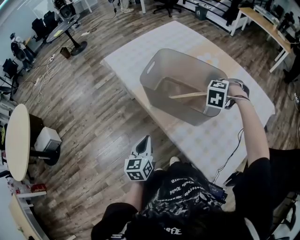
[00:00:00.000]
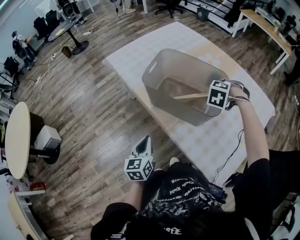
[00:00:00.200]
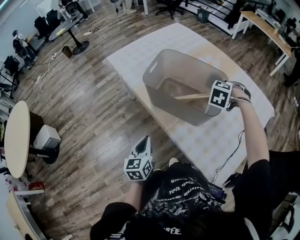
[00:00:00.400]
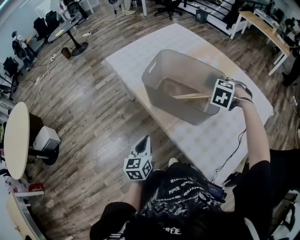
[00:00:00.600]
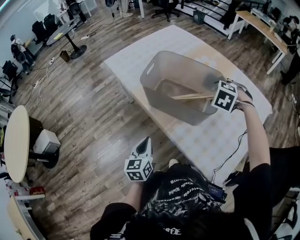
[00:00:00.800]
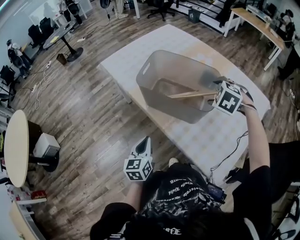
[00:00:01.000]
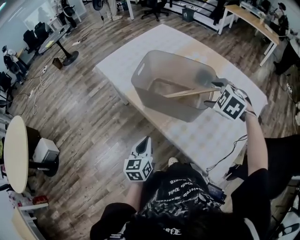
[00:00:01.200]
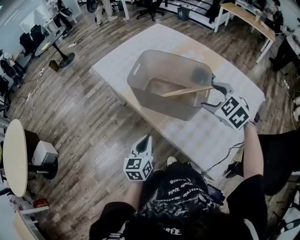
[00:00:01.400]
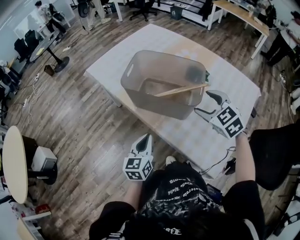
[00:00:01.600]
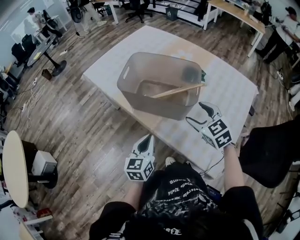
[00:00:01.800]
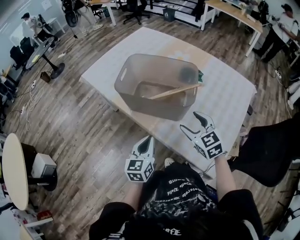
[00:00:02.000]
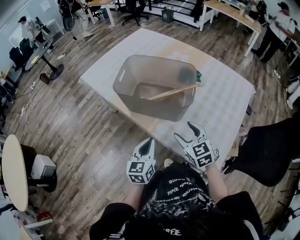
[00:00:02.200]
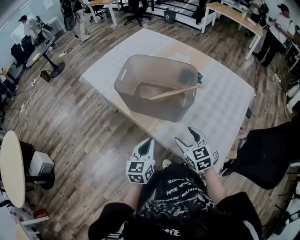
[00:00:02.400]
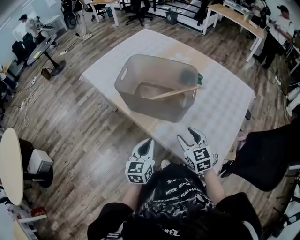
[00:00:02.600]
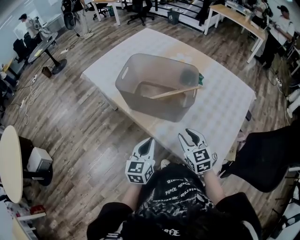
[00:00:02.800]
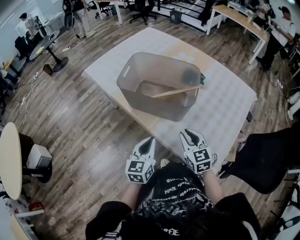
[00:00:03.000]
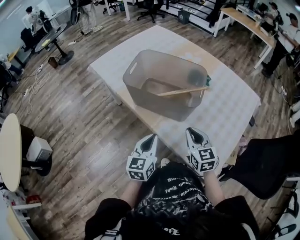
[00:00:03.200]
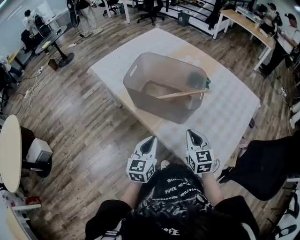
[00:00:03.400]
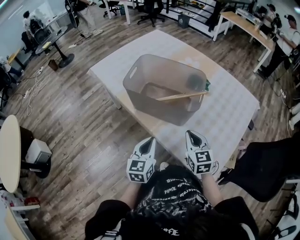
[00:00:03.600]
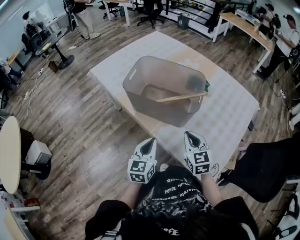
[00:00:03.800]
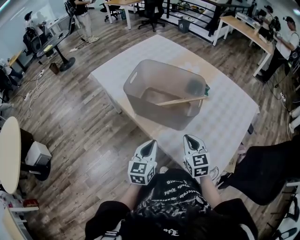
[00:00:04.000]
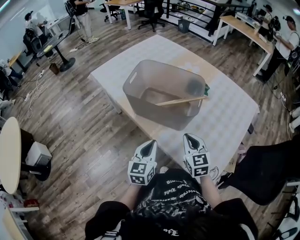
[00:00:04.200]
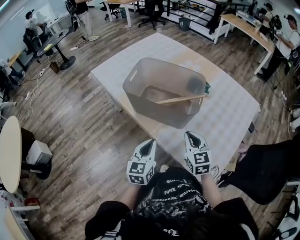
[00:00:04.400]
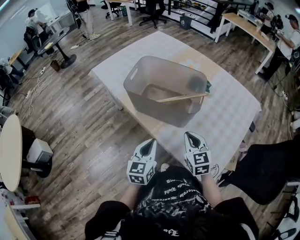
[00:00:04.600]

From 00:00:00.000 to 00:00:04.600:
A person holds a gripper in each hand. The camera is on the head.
From 00:00:00.000 to 00:00:01.600: The left gripper moves to the right, some 5 cm. The right gripper shifts some 15 cm backward and upward, rotates about 60 degrees, and opens its fingers.
From 00:00:01.600 to 00:00:03.000: The right gripper travels backward and downward by some 15 cm, turns by roughly 30 degrees, and closes up. The left gripper ends up approximately 5 cm from where it was.
From 00:00:03.000 to 00:00:04.600: The grippers make only small movements.

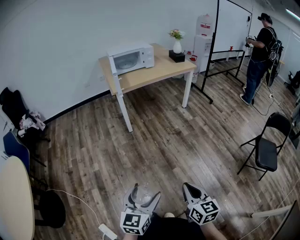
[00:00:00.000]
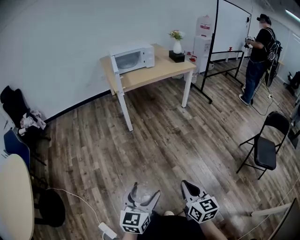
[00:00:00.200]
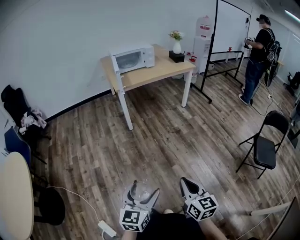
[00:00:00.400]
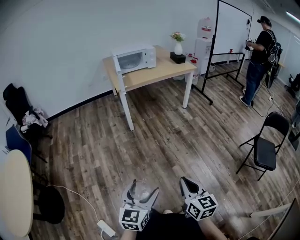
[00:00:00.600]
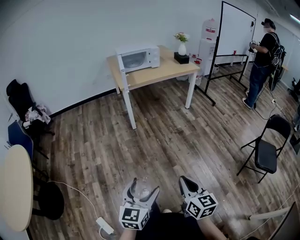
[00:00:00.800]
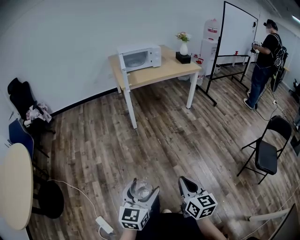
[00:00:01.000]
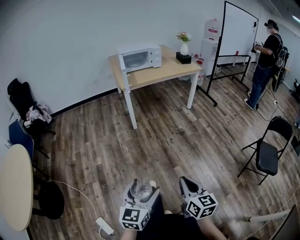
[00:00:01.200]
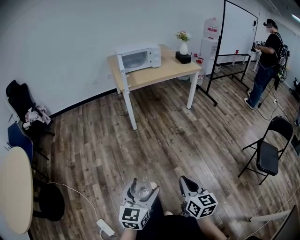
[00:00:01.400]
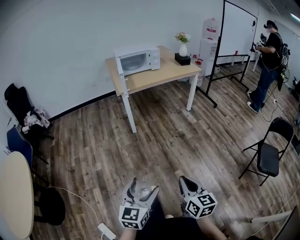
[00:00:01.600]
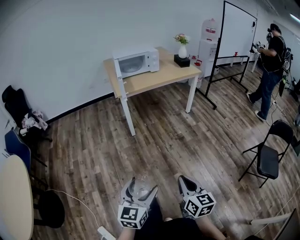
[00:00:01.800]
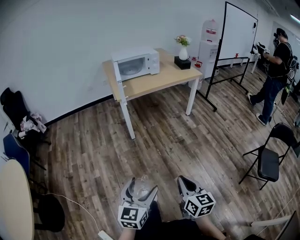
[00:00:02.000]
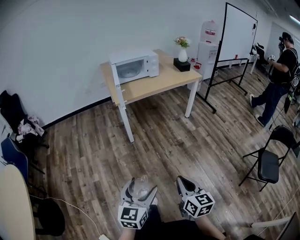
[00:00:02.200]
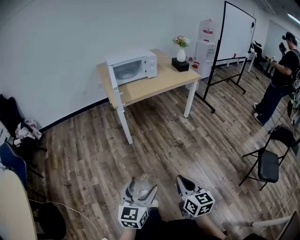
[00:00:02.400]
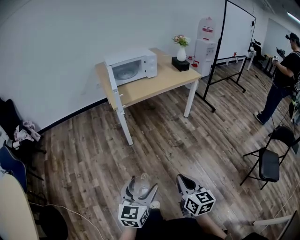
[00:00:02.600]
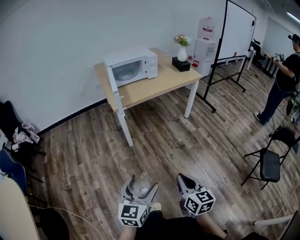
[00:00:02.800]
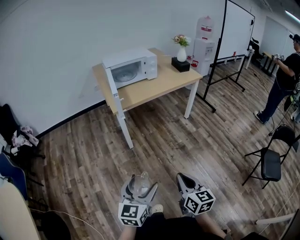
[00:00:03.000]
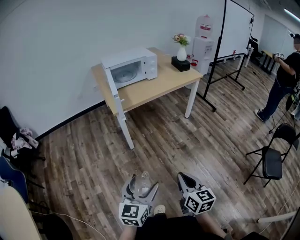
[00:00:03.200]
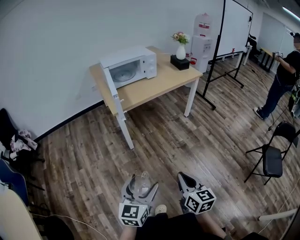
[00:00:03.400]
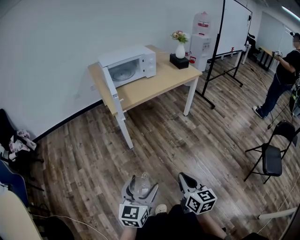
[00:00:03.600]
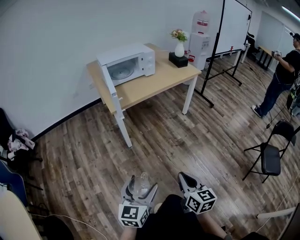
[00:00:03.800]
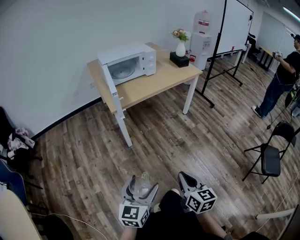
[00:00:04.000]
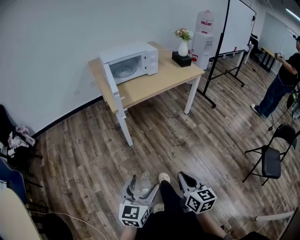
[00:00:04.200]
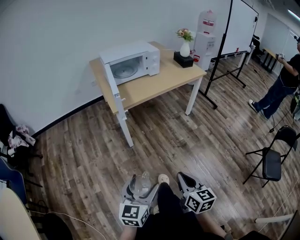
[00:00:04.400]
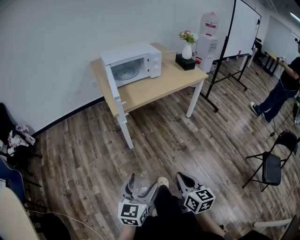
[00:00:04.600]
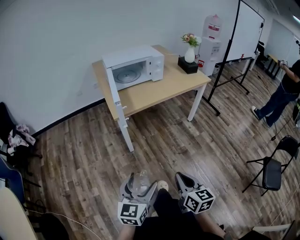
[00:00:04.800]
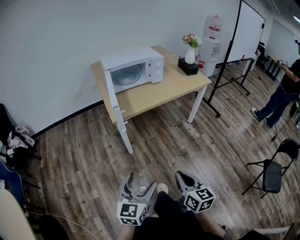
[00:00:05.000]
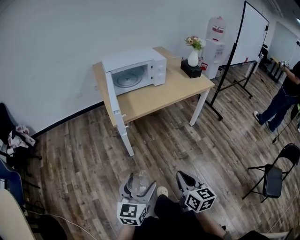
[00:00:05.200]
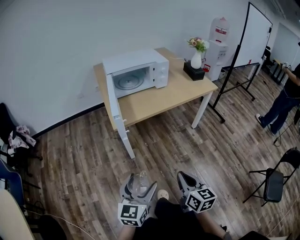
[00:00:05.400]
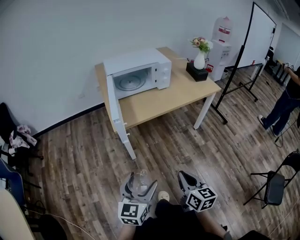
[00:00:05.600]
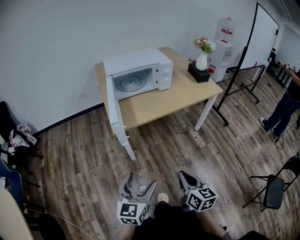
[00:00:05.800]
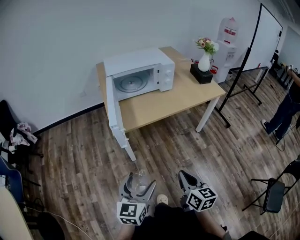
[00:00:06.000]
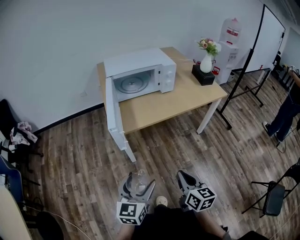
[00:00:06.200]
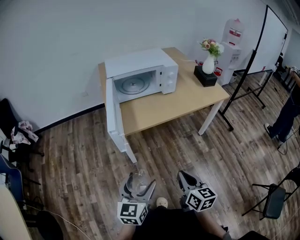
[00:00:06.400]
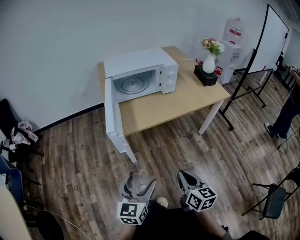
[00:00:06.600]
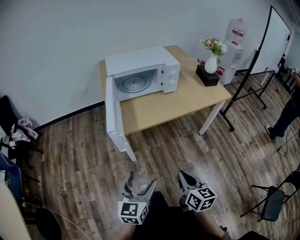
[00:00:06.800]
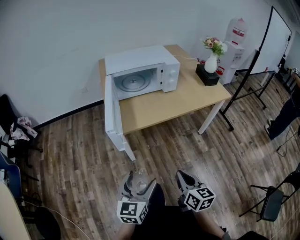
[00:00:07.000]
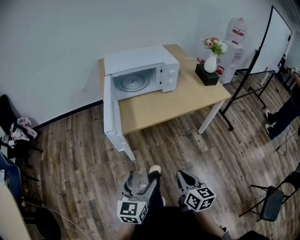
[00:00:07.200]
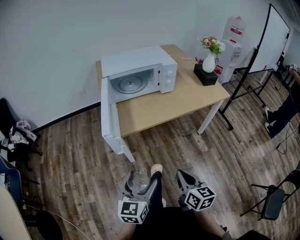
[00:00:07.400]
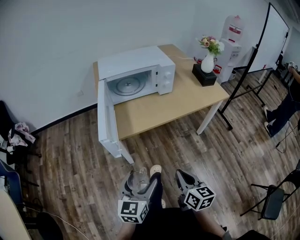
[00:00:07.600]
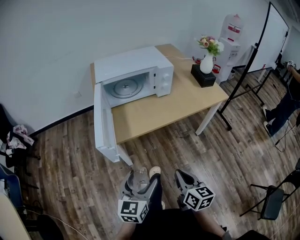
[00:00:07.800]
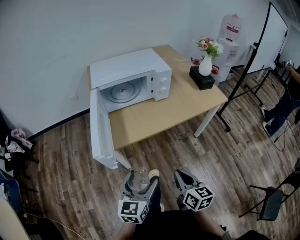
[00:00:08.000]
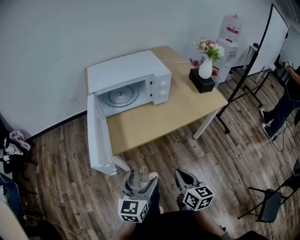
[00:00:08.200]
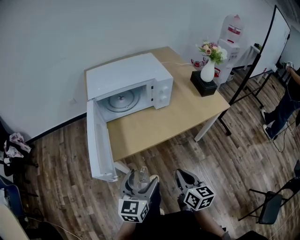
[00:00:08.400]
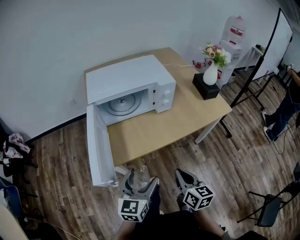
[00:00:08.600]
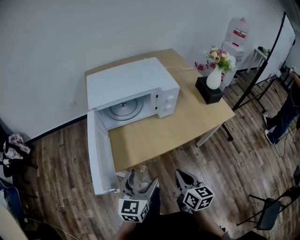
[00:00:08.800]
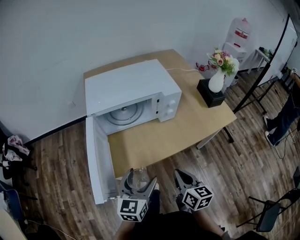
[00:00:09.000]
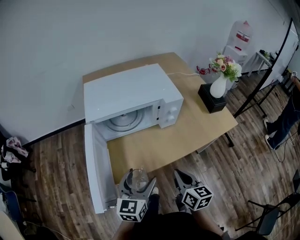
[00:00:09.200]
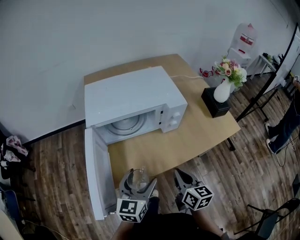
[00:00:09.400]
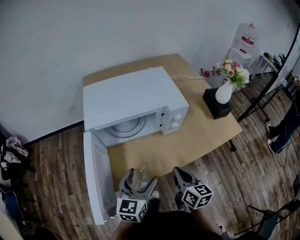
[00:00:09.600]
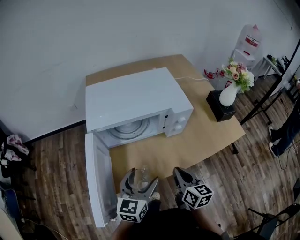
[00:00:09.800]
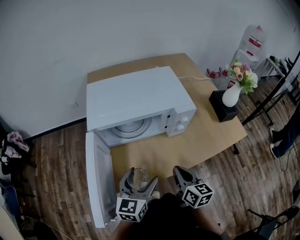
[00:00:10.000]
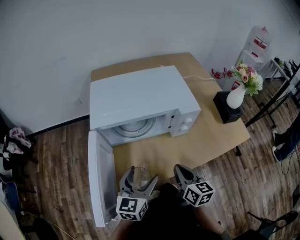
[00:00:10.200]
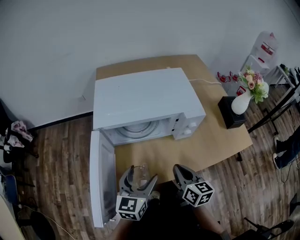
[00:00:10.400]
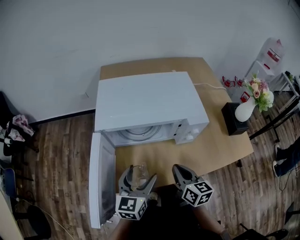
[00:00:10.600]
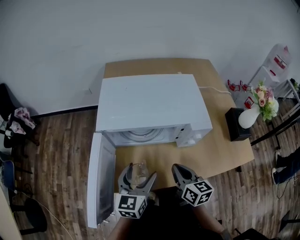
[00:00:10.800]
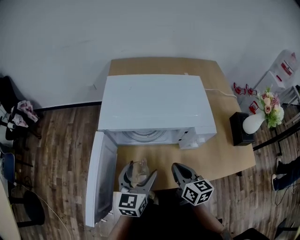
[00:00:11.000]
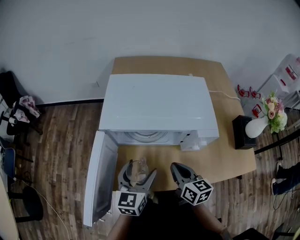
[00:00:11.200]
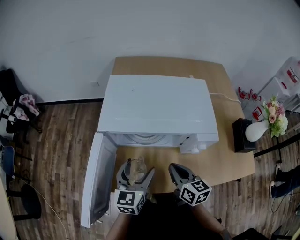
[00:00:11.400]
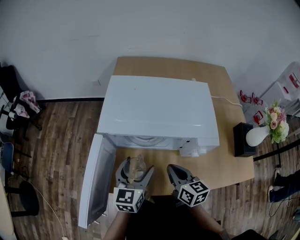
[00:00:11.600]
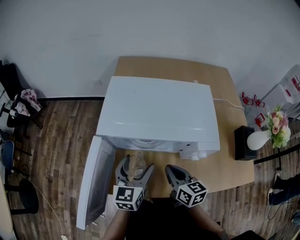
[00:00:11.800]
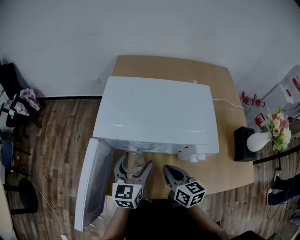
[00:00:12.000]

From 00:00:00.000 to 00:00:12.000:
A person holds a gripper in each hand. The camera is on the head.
From 00:00:00.000 to 00:00:01.600: The grippers move only a little.
From 00:00:01.600 to 00:00:03.000: Both grippers travel together forward, approximately 25 cm.
From 00:00:03.000 to 00:00:04.400: Both grippers travel together forward, approximately 5 cm.
From 00:00:04.400 to 00:00:06.000: Both grippers move forward, approximately 25 cm.
From 00:00:06.000 to 00:00:07.600: The two grippers go about 10 cm forward.
From 00:00:07.600 to 00:00:09.000: The grippers both shift forward by about 25 cm.
From 00:00:09.000 to 00:00:10.400: The grippers both shift forward by about 15 cm.
From 00:00:10.400 to 00:00:12.000: Both grippers move forward, about 15 cm. The right gripper changes its angle by some 20 degrees.

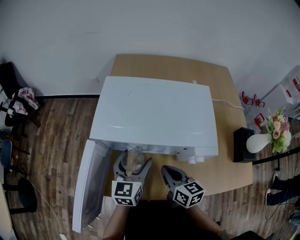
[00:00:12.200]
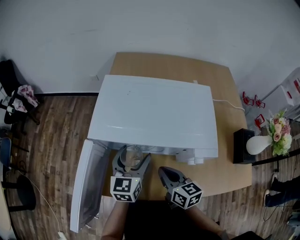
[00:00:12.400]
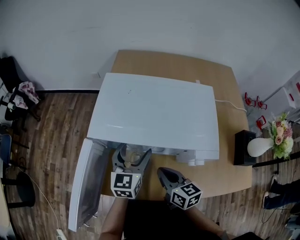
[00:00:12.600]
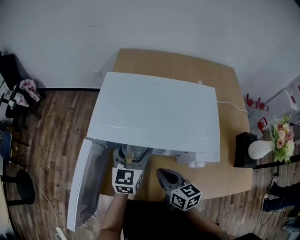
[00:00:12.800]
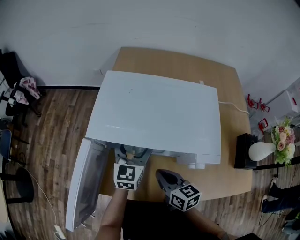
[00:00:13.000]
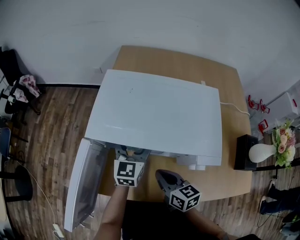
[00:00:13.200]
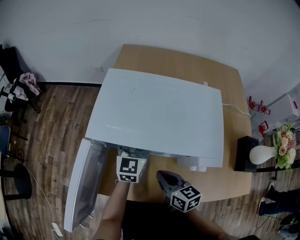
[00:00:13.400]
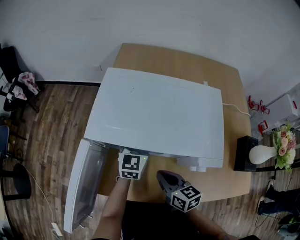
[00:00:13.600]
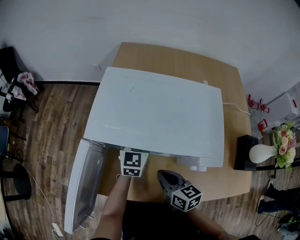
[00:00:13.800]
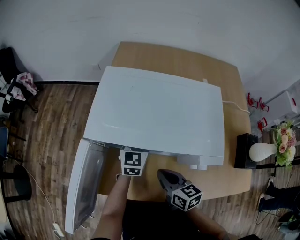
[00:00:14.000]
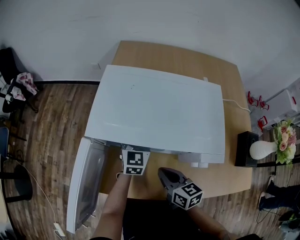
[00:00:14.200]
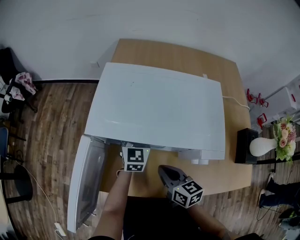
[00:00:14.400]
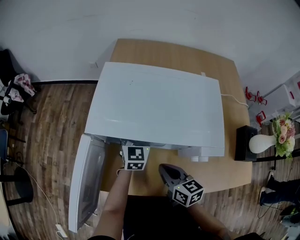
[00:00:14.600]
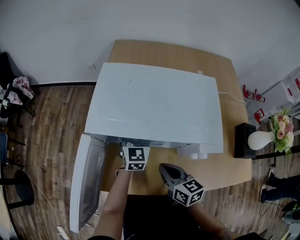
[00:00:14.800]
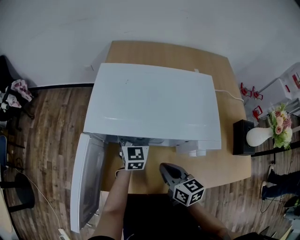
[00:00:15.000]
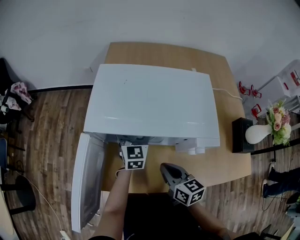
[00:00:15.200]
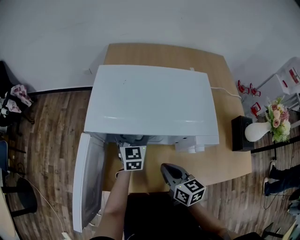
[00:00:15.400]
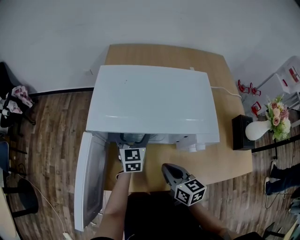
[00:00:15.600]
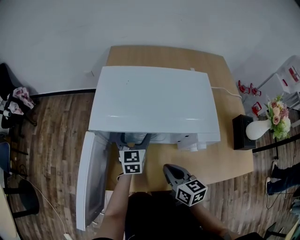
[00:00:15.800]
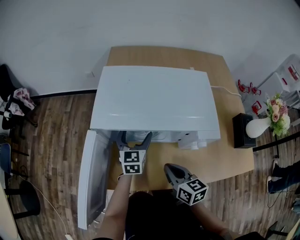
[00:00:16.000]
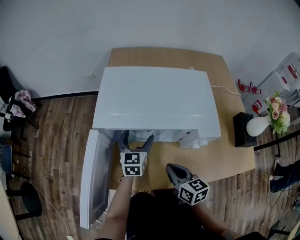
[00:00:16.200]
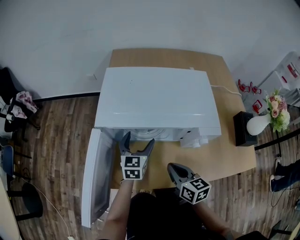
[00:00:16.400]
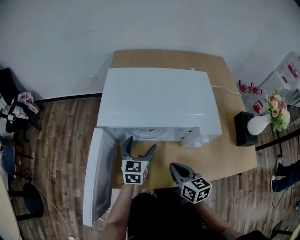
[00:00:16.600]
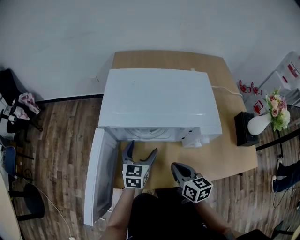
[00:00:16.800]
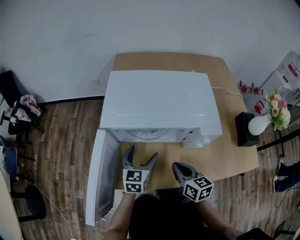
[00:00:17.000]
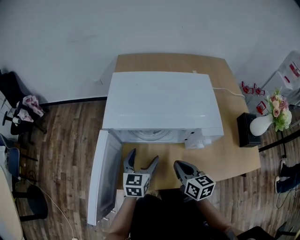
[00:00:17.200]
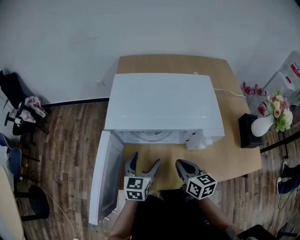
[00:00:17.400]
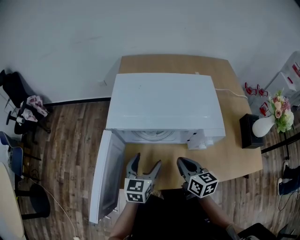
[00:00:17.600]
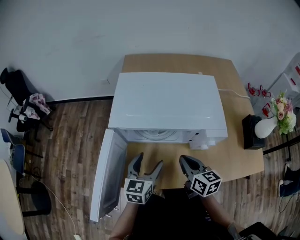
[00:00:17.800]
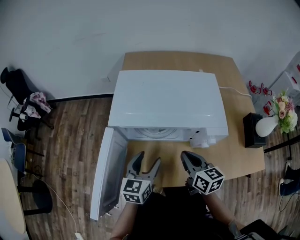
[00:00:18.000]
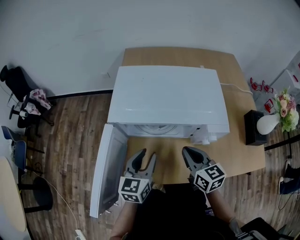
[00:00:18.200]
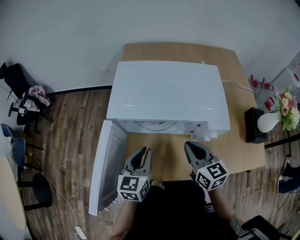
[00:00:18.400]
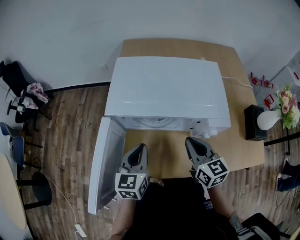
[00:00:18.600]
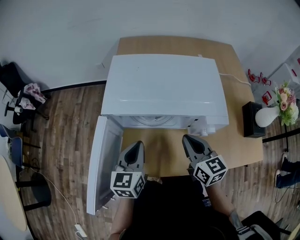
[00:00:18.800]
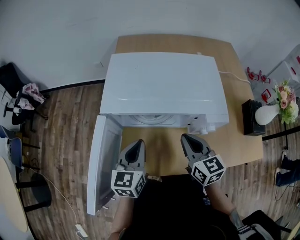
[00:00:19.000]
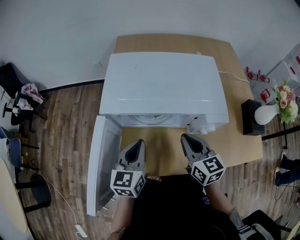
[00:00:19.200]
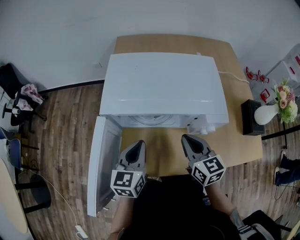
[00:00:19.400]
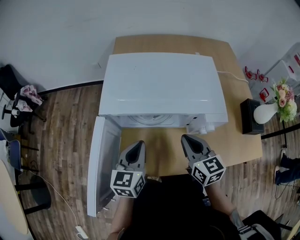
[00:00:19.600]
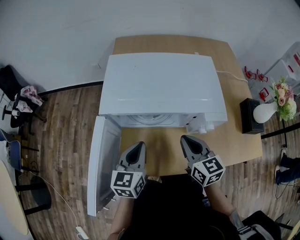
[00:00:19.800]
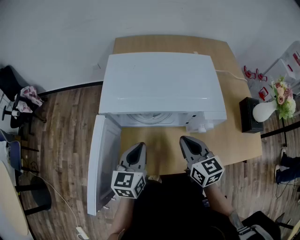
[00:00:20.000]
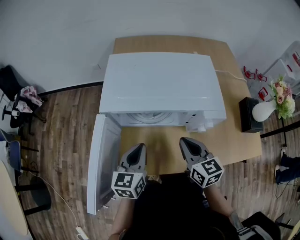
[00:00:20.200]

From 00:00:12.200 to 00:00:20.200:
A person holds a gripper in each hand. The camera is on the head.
From 00:00:12.200 to 00:00:13.800: The left gripper heads forward, covering about 10 cm.
From 00:00:13.800 to 00:00:15.400: The grippers make only small movements.
From 00:00:15.400 to 00:00:17.000: The left gripper travels backward by approximately 10 cm.
From 00:00:17.000 to 00:00:18.600: The right gripper goes approximately 10 cm upward and forward; the left gripper moves upward, approximately 5 cm, and closes its fingers.
From 00:00:18.600 to 00:00:20.200: The grippers stay close to where they were, moving slightly.
